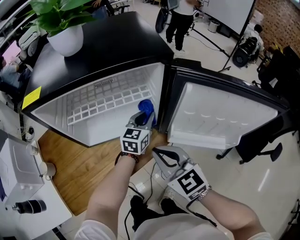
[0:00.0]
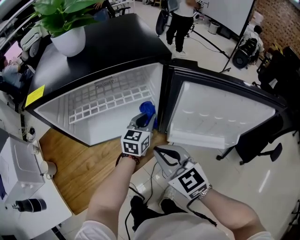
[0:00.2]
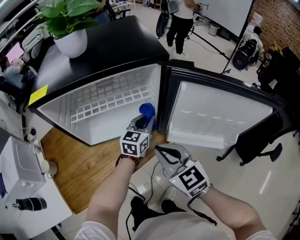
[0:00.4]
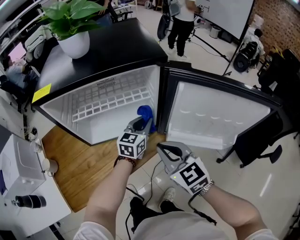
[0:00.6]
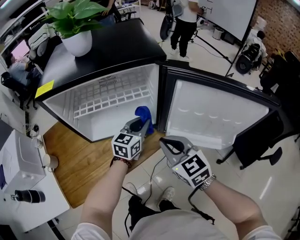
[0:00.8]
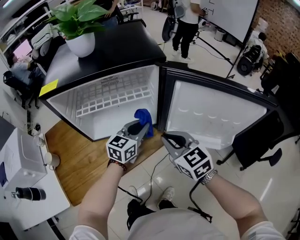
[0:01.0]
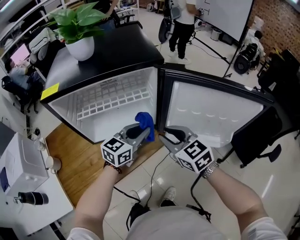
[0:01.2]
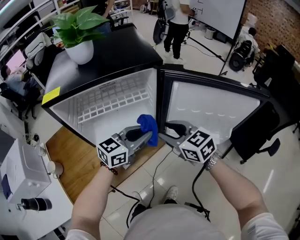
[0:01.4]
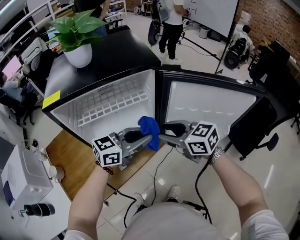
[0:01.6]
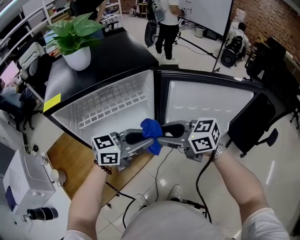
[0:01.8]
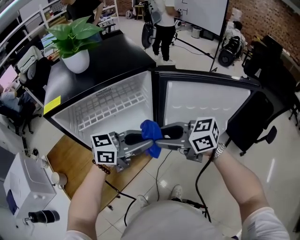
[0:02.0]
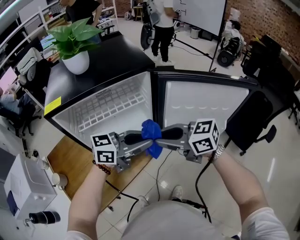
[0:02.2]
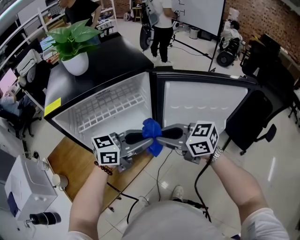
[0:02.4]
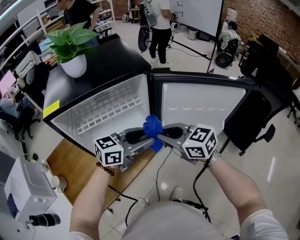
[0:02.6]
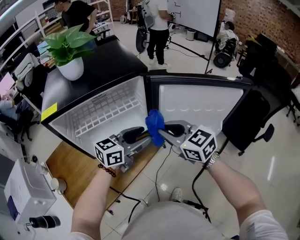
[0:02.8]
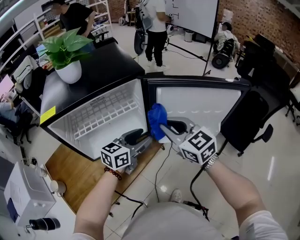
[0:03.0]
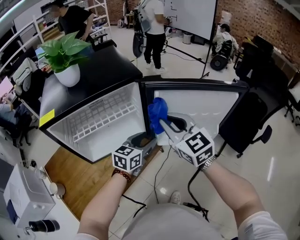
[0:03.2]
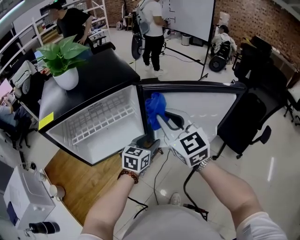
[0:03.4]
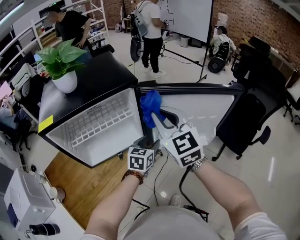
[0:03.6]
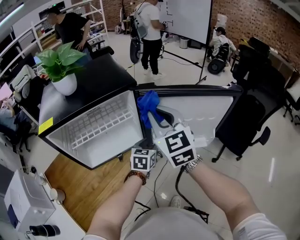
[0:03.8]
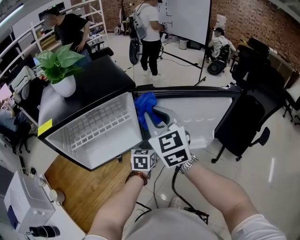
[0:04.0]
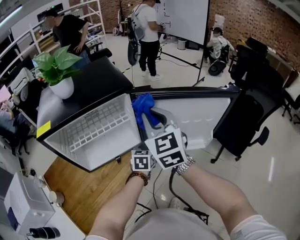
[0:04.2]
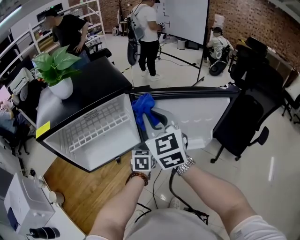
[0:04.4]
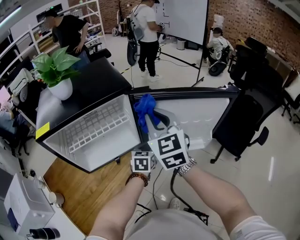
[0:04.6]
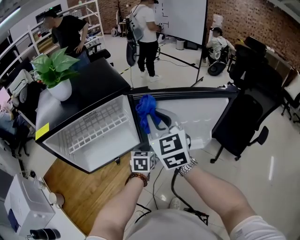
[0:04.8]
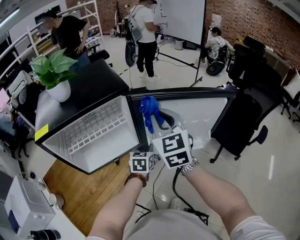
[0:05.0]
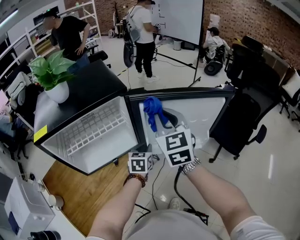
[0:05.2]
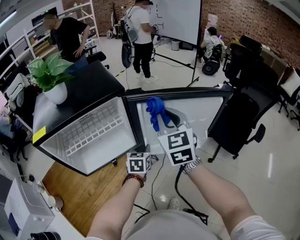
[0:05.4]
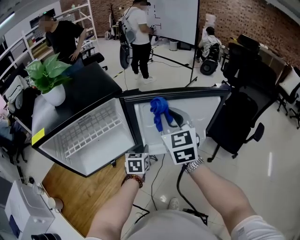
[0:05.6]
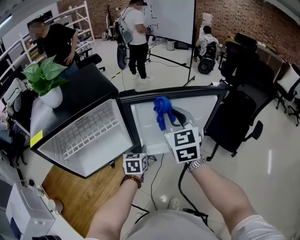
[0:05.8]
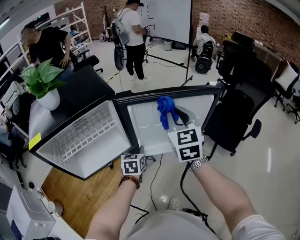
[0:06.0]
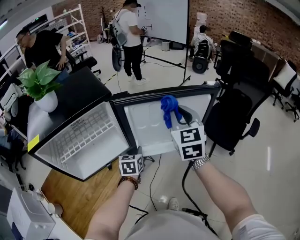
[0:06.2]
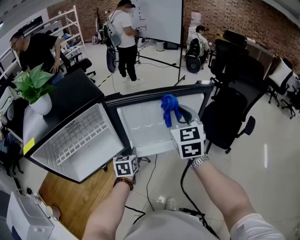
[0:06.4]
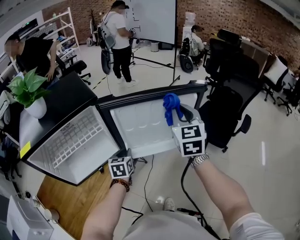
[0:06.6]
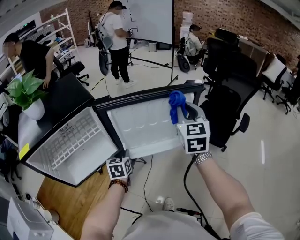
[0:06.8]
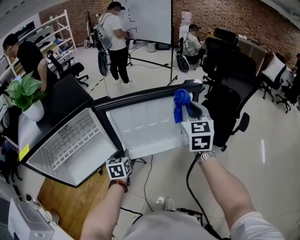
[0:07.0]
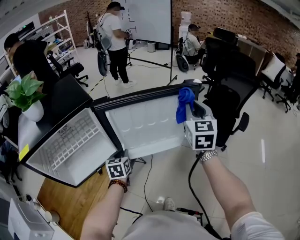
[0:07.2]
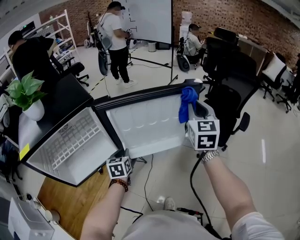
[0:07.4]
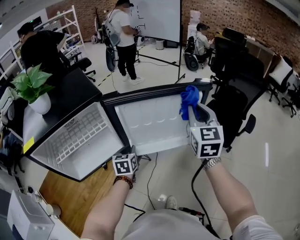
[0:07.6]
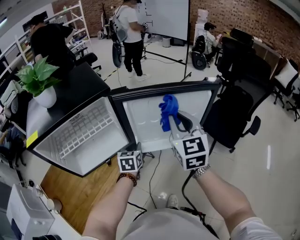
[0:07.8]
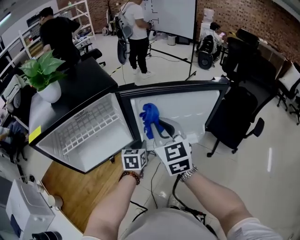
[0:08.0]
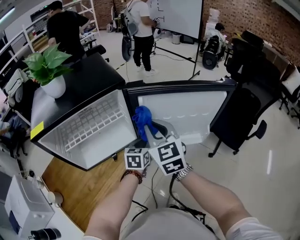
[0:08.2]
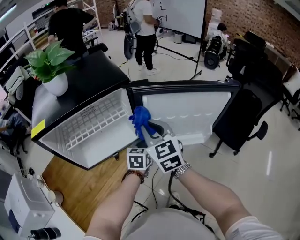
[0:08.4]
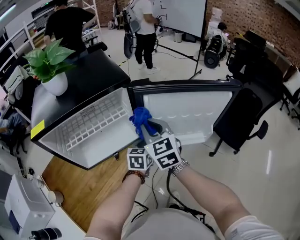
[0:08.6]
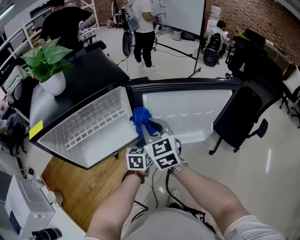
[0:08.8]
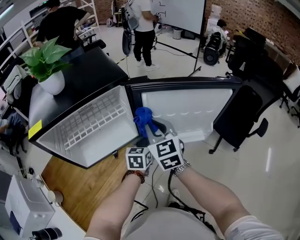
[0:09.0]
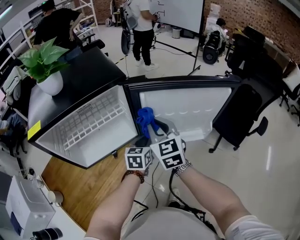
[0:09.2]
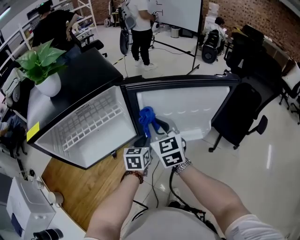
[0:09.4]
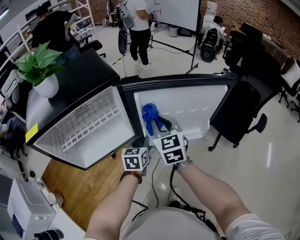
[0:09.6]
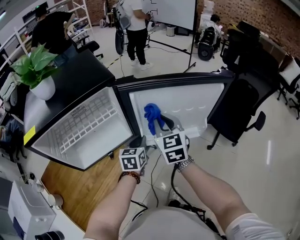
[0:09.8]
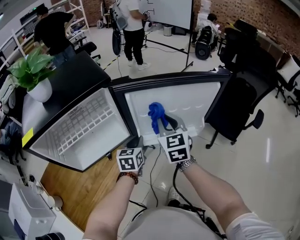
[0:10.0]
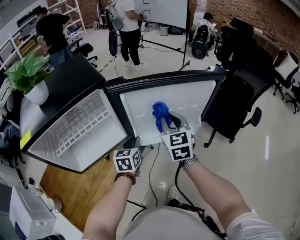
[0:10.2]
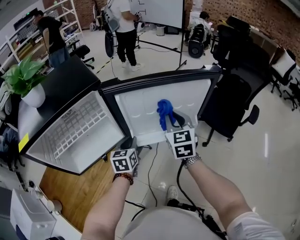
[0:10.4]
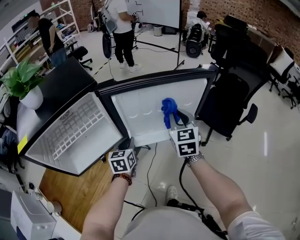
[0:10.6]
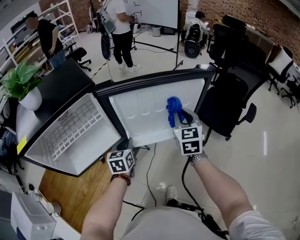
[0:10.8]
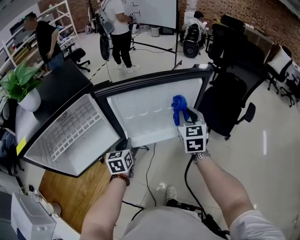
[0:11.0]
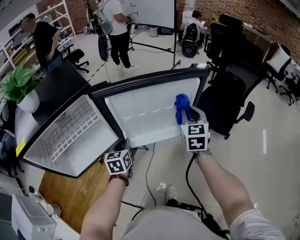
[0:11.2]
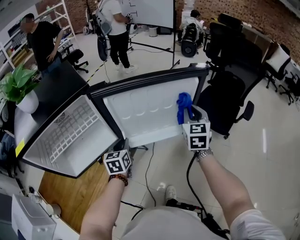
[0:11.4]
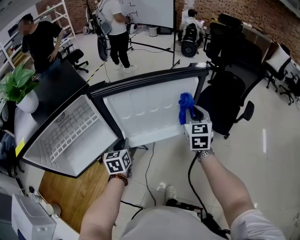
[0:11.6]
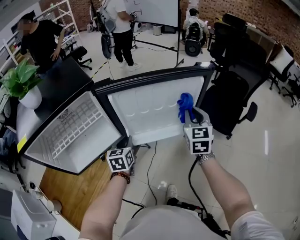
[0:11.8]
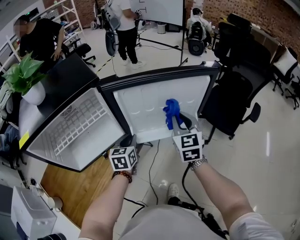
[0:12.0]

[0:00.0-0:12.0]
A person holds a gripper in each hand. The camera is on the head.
0:00.0 to 0:01.6: The right gripper shifts by roughly 5 cm, changes its angle by some 20 degrees, and opens; the left gripper moves roughly 20 cm, and changes its angle by approximately 40 degrees.
0:01.6 to 0:03.0: The left gripper ends up roughly 5 cm from where it was, and opens its fingers, while the right gripper is displaced upward by about 5 cm, swivels some 30 degrees, and closes.
0:03.0 to 0:04.4: The right gripper shifts about 10 cm upward, and swivels some 20 degrees, while the left gripper moves downward, to the right and forward, roughly 15 cm, turns by some 30 degrees, and closes up.
0:04.4 to 0:06.0: The right gripper goes roughly 15 cm to the right.
0:06.0 to 0:07.6: The right gripper goes about 15 cm to the right.
0:07.6 to 0:09.0: The right gripper moves to the left, approximately 25 cm, and turns by approximately 30 degrees.
0:09.0 to 0:10.4: The right gripper travels to the right by some 15 cm.
0:10.4 to 0:12.0: The right gripper travels to the right and back again, approximately 15 cm each way.

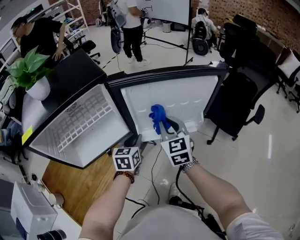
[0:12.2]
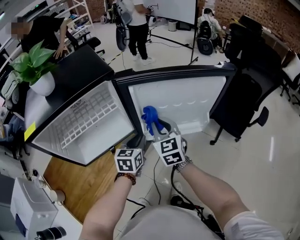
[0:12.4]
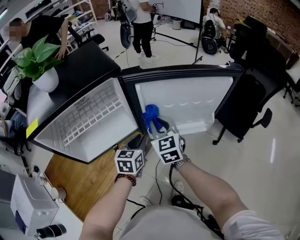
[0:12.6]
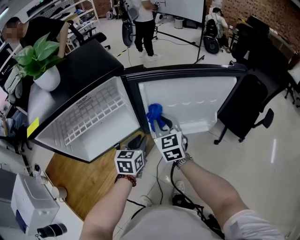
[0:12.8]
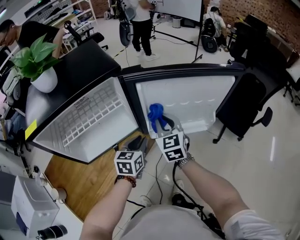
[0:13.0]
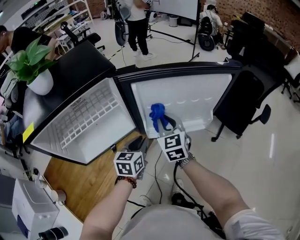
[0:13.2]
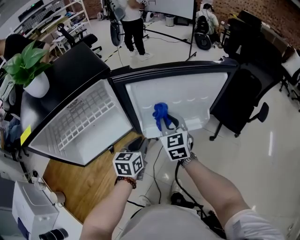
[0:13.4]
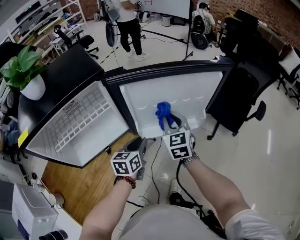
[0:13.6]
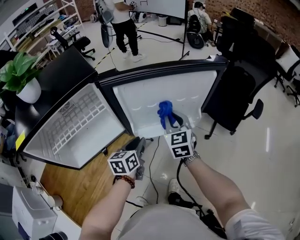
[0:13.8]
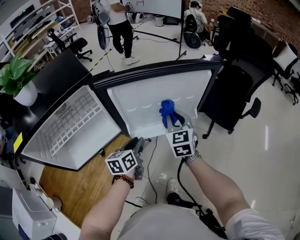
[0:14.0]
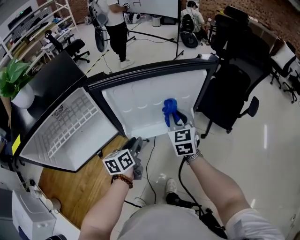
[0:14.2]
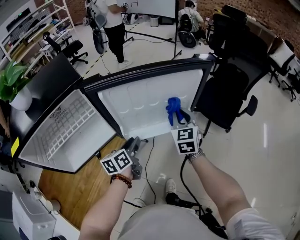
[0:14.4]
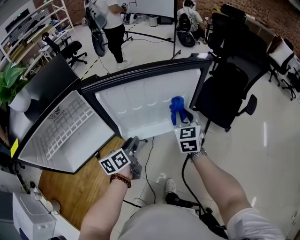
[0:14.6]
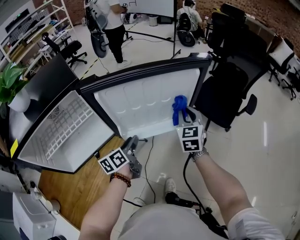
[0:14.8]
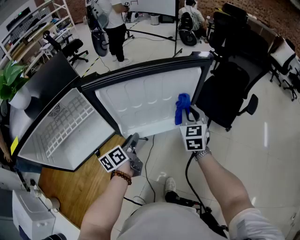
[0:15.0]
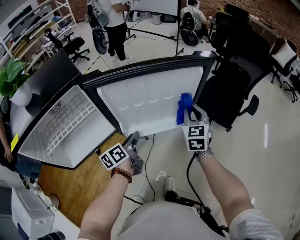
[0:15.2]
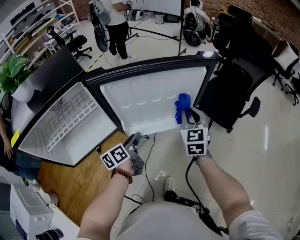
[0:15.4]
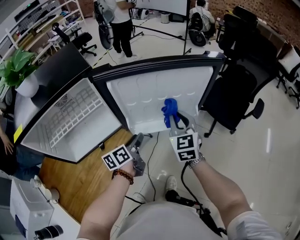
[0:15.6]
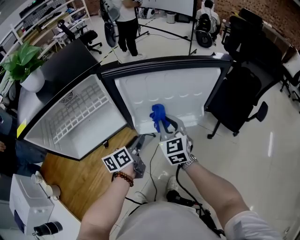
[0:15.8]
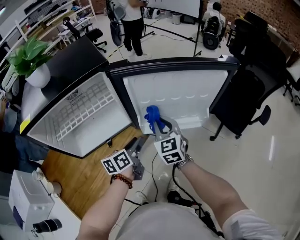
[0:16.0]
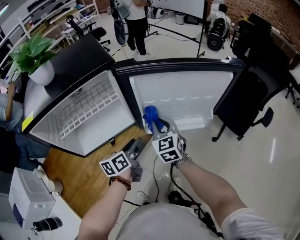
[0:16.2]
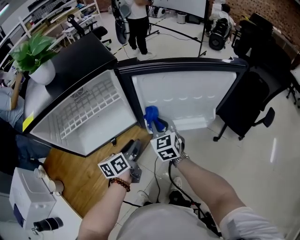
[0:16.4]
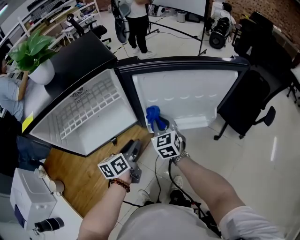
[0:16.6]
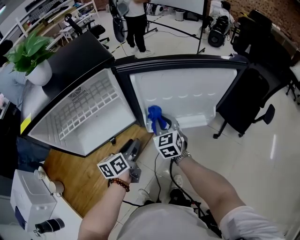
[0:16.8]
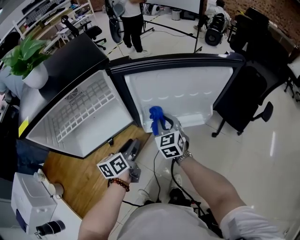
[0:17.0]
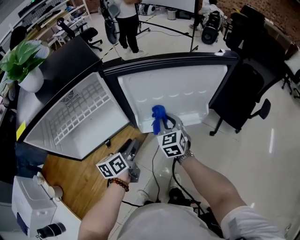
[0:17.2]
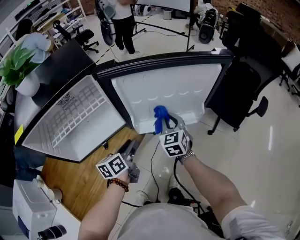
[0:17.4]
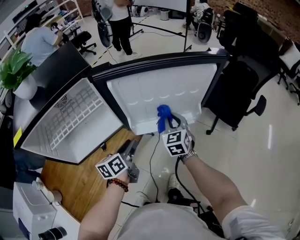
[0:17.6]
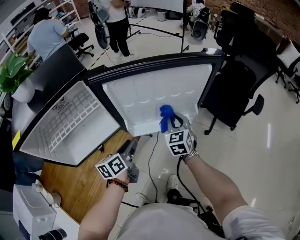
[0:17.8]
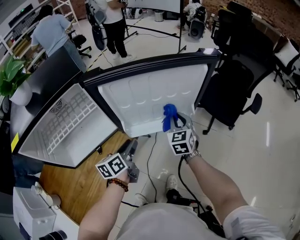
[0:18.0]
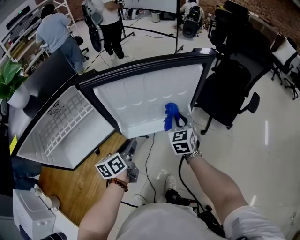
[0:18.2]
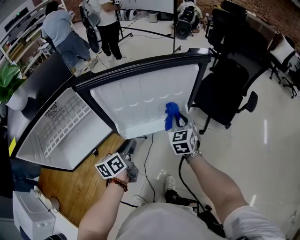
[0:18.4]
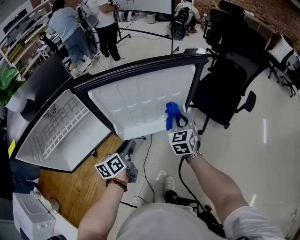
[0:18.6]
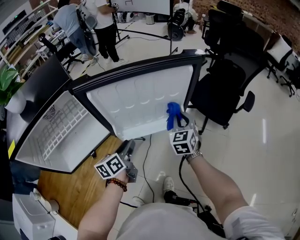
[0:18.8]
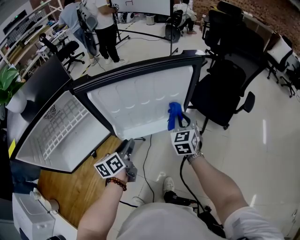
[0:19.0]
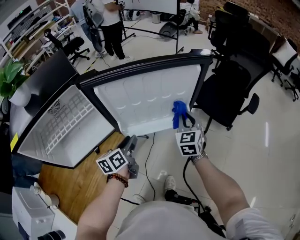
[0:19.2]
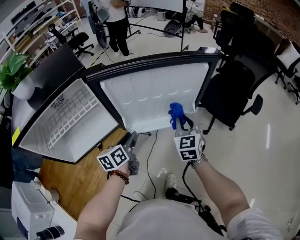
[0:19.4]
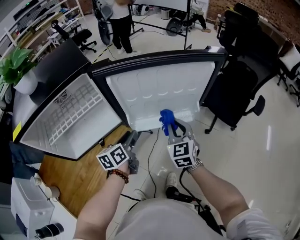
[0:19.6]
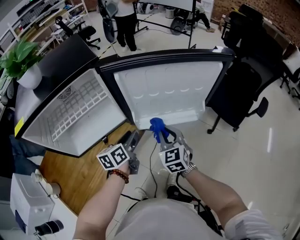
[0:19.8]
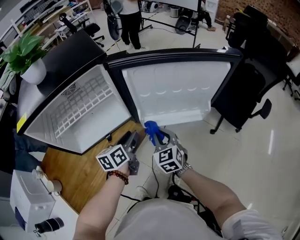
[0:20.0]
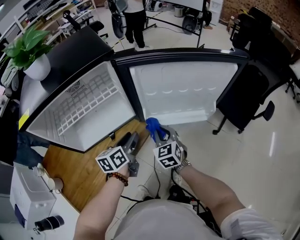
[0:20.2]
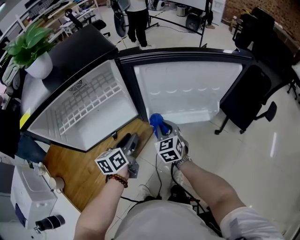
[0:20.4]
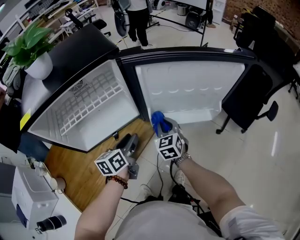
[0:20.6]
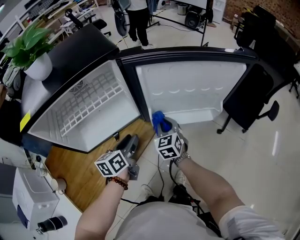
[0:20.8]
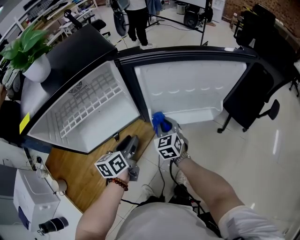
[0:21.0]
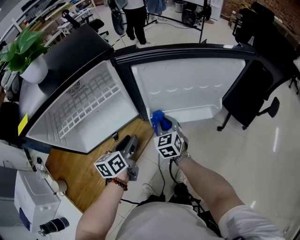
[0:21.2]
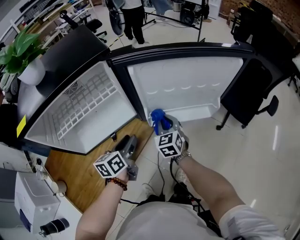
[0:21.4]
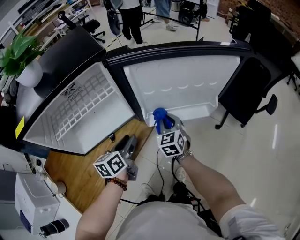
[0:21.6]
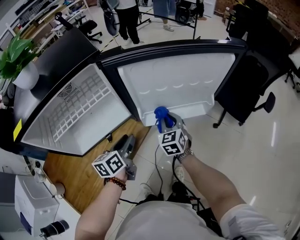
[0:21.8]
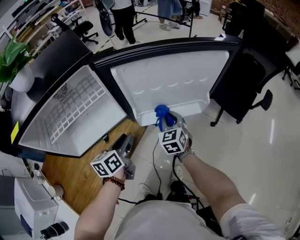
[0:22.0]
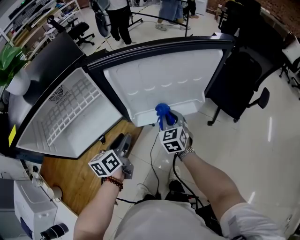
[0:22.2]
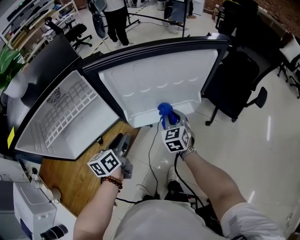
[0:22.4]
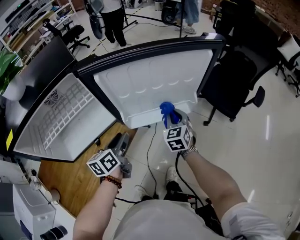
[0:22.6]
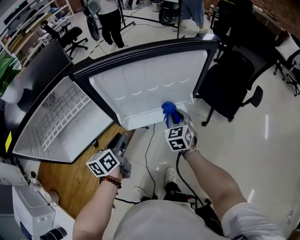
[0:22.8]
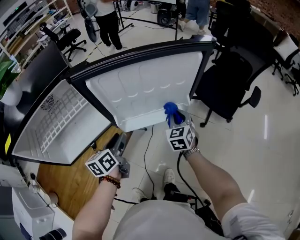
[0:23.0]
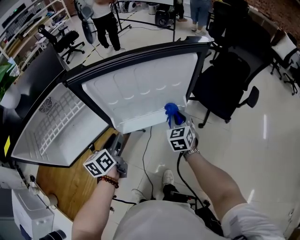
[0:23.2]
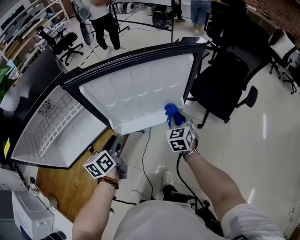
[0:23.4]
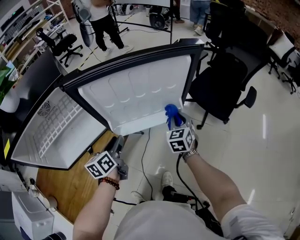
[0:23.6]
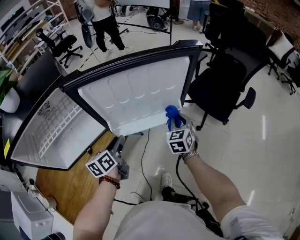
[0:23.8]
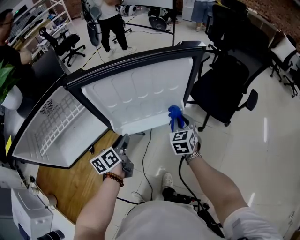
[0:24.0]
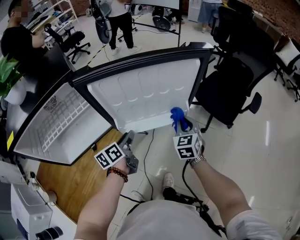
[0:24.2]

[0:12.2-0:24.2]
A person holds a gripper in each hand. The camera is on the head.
0:12.2 to 0:13.8: The right gripper moves about 10 cm to the left and comes back.
0:13.8 to 0:15.2: The right gripper is displaced to the right by roughly 15 cm. Meanwhile the left gripper turns by about 30 degrees.
0:15.2 to 0:16.6: The left gripper goes some 10 cm to the left and backward, while the right gripper moves to the left, approximately 25 cm, and turns by some 30 degrees.
0:16.6 to 0:18.2: The left gripper is displaced to the right by approximately 10 cm. Meanwhile the right gripper moves to the right, some 20 cm, and turns by approximately 20 degrees.
0:18.2 to 0:19.8: The right gripper heads to the left and backward, covering some 15 cm; the left gripper ends up roughly 5 cm from where it was.
0:19.8 to 0:21.2: The right gripper goes about 10 cm to the left, forward and downward, while the left gripper travels to the left by roughly 5 cm.
0:21.2 to 0:22.6: The right gripper goes about 15 cm to the right; the left gripper shifts approximately 5 cm to the right.
0:22.6 to 0:24.2: The right gripper is displaced to the right by some 10 cm. The left gripper changes place by roughly 5 cm.
